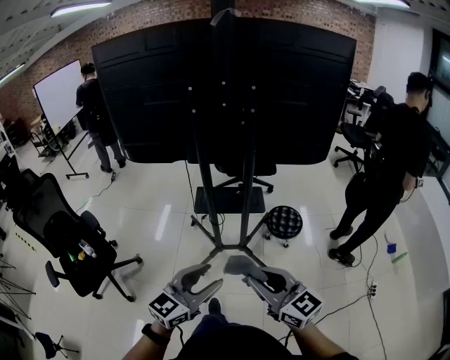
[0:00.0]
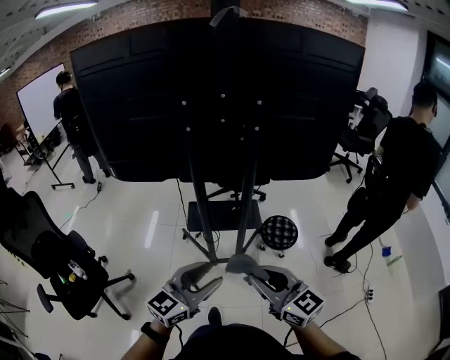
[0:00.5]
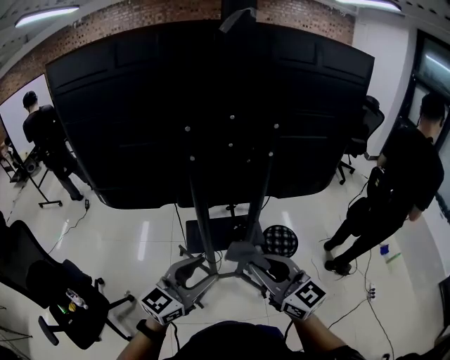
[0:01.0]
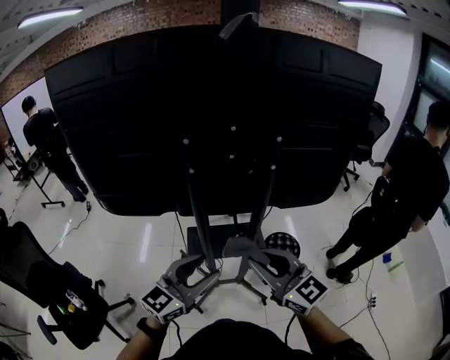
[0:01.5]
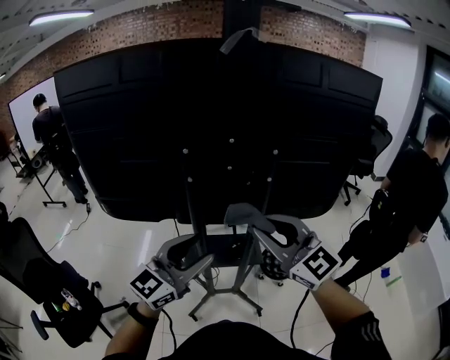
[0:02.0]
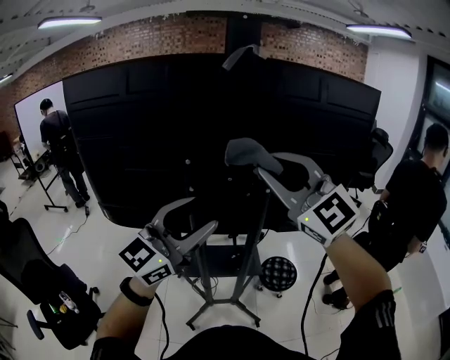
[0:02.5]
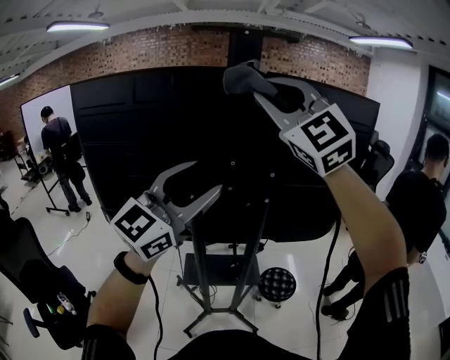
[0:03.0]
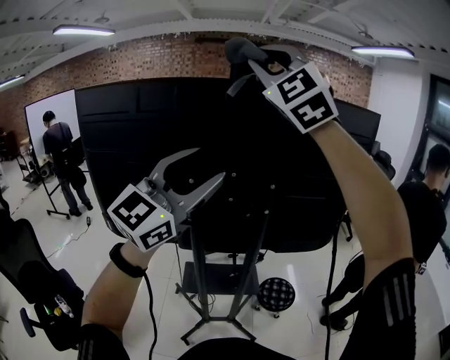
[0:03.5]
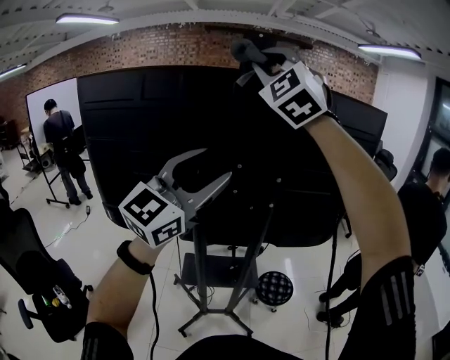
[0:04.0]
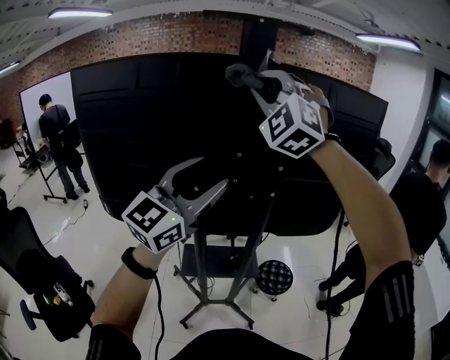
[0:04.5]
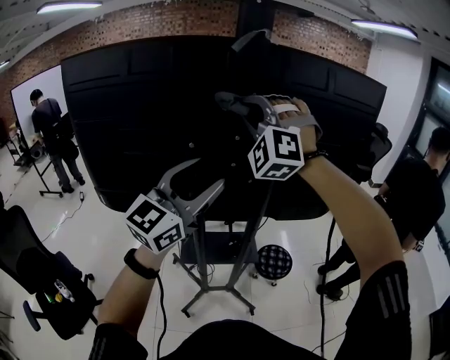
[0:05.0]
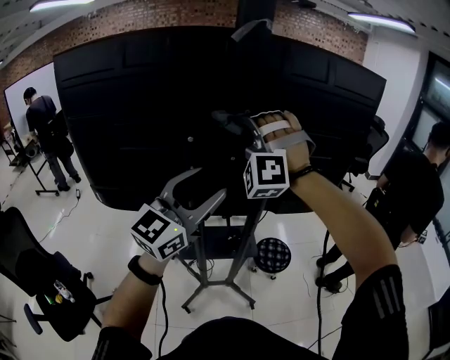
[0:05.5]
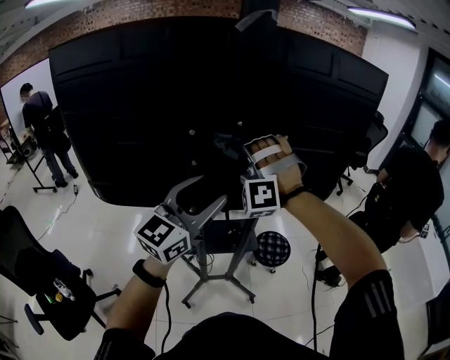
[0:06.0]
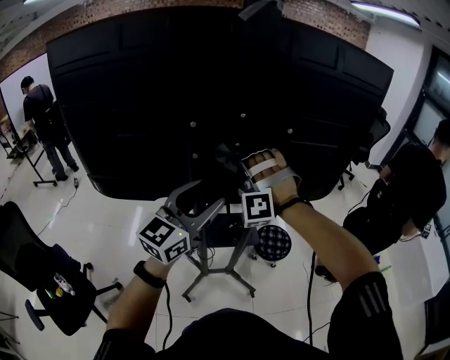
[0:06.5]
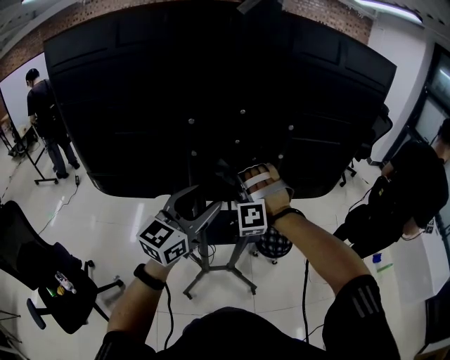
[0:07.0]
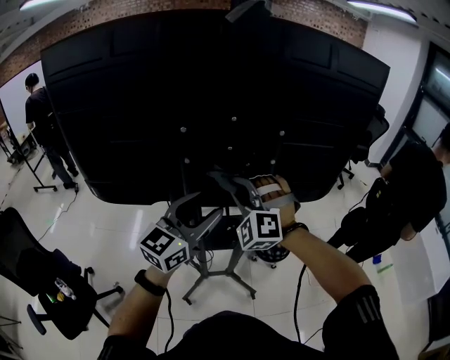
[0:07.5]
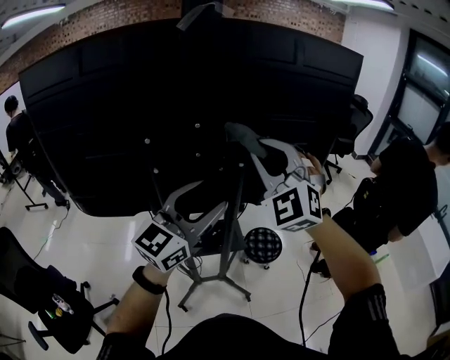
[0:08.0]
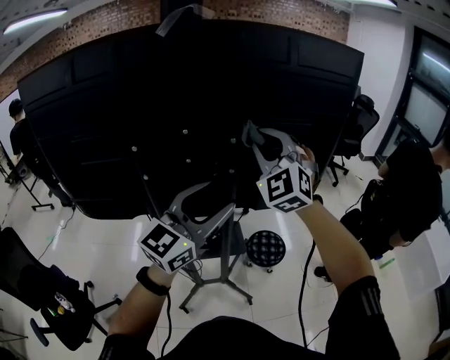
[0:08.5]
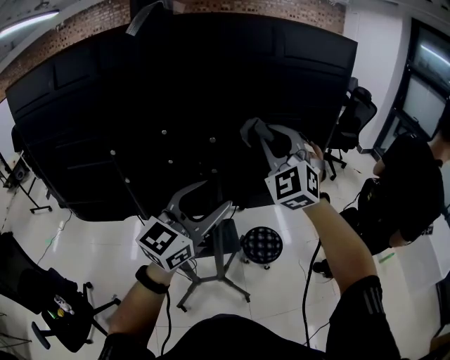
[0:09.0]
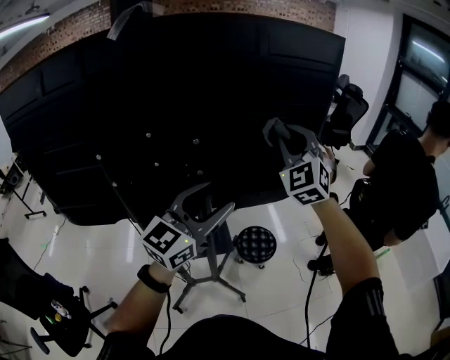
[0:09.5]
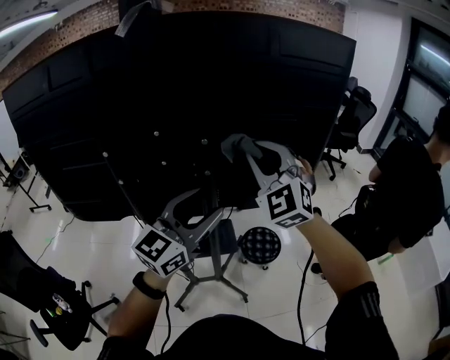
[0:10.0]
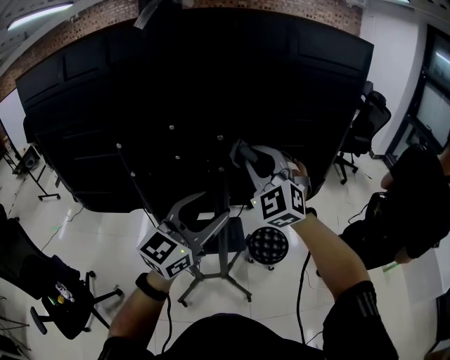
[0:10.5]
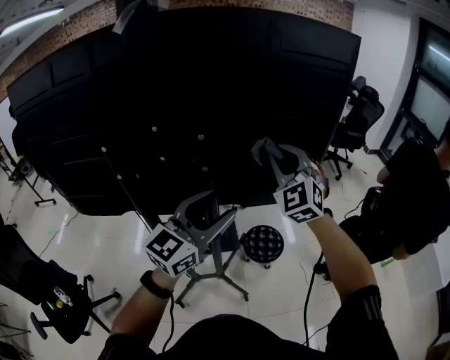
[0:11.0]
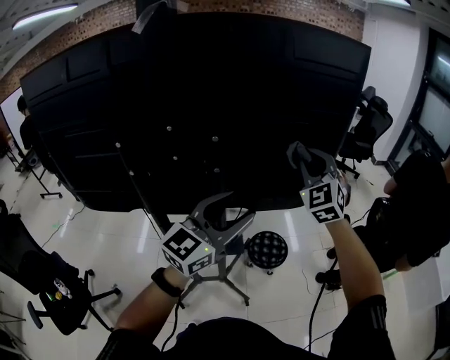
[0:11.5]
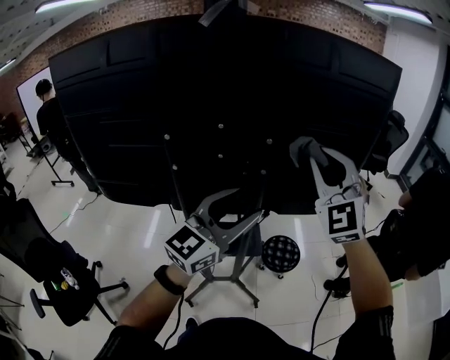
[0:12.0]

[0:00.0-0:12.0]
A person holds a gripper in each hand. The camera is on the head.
0:00.0 to 0:02.0: The left gripper shifts by about 35 cm.
0:02.0 to 0:04.0: The left gripper travels upward by approximately 25 cm.
0:04.0 to 0:06.0: The left gripper shifts approximately 15 cm downward.
0:06.0 to 0:08.0: The left gripper moves roughly 5 cm downward and comes back.
0:08.0 to 0:10.0: The left gripper ends up some 10 cm from where it was.

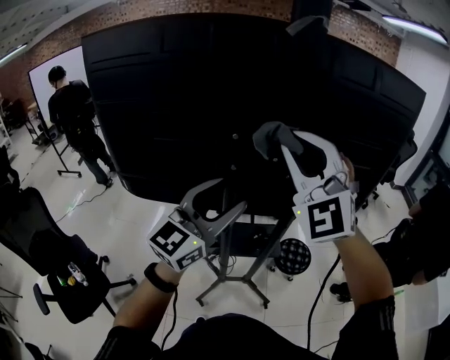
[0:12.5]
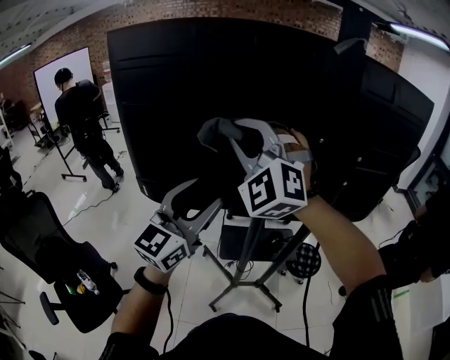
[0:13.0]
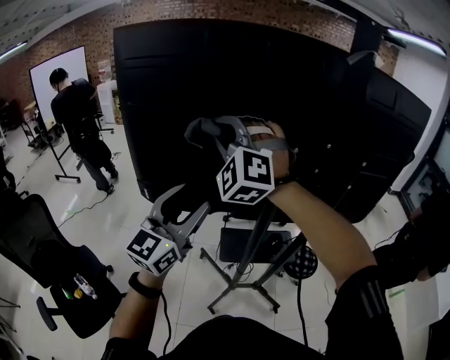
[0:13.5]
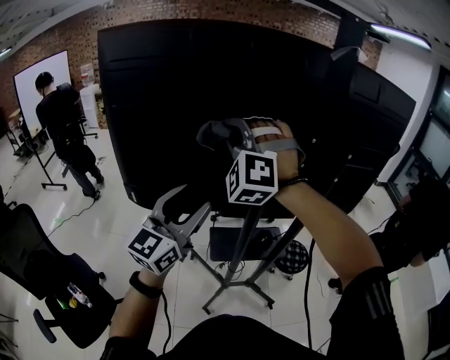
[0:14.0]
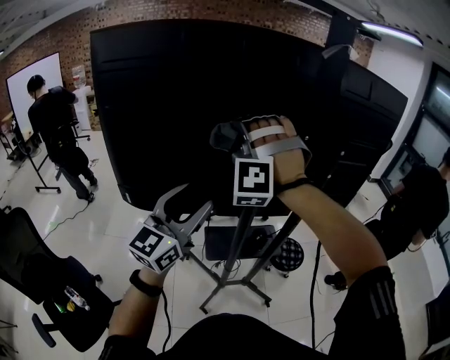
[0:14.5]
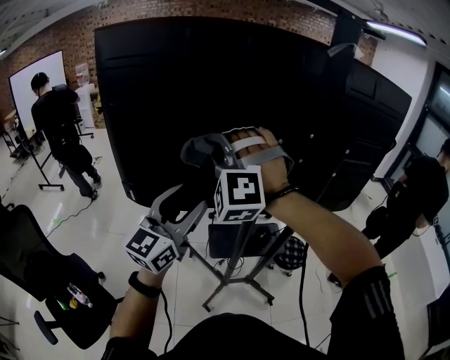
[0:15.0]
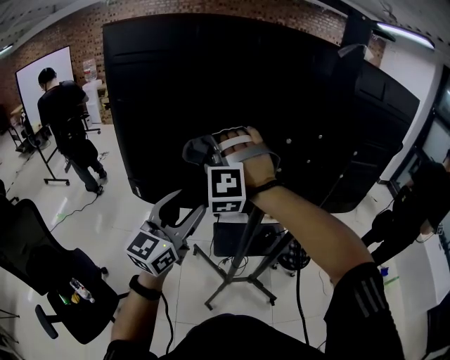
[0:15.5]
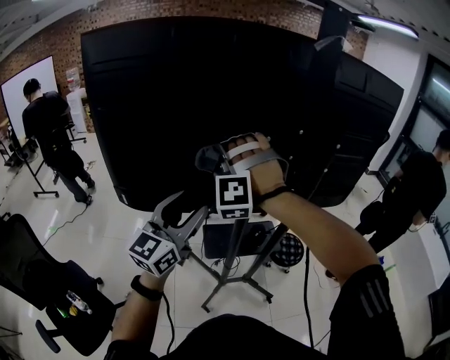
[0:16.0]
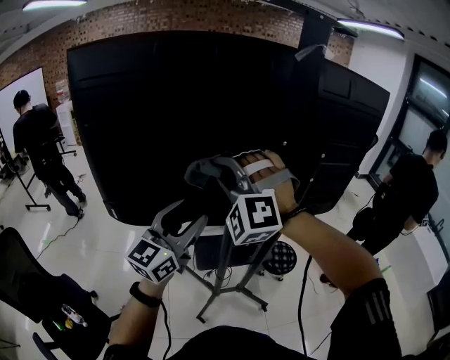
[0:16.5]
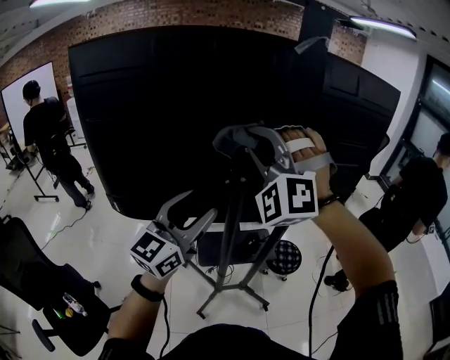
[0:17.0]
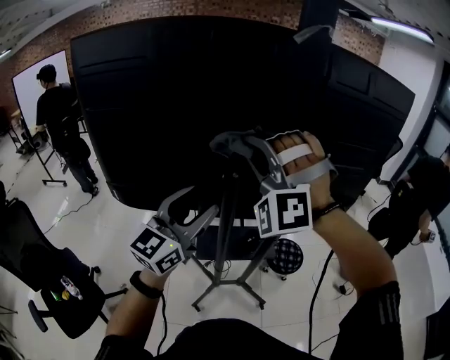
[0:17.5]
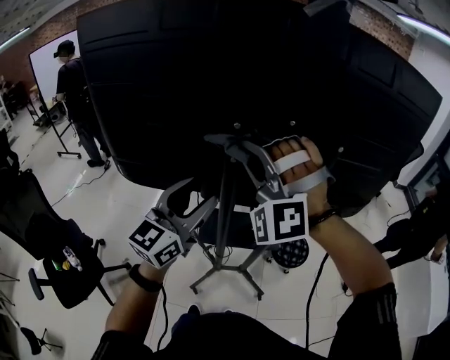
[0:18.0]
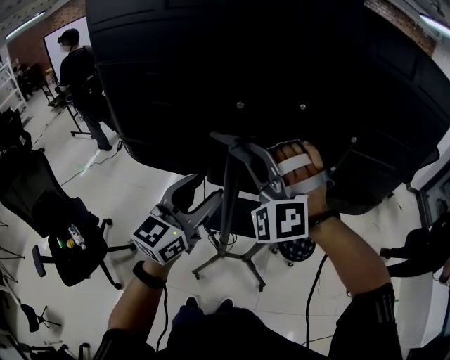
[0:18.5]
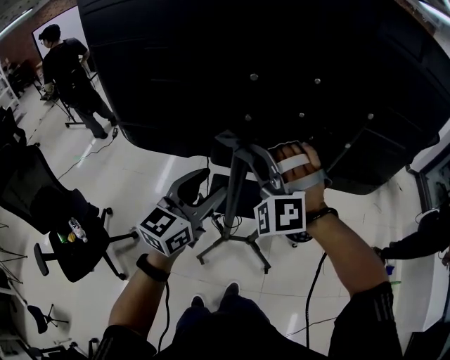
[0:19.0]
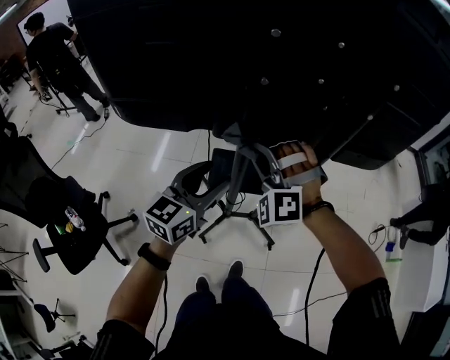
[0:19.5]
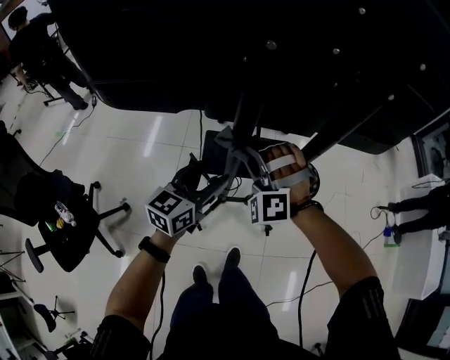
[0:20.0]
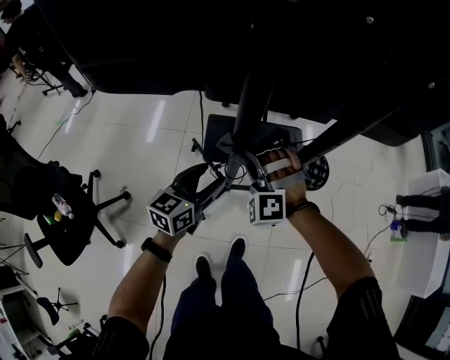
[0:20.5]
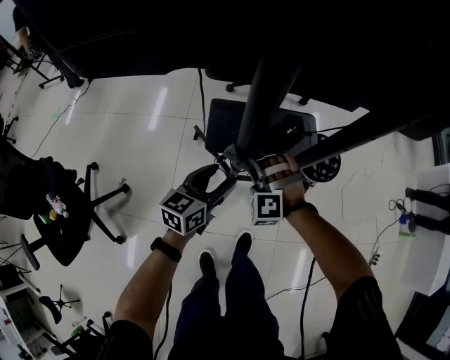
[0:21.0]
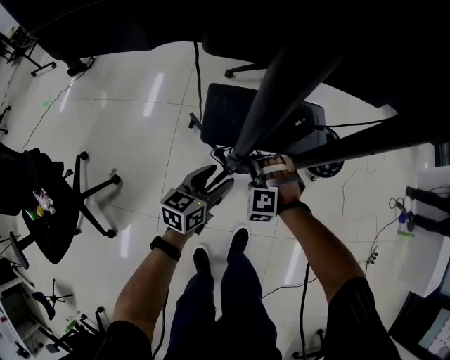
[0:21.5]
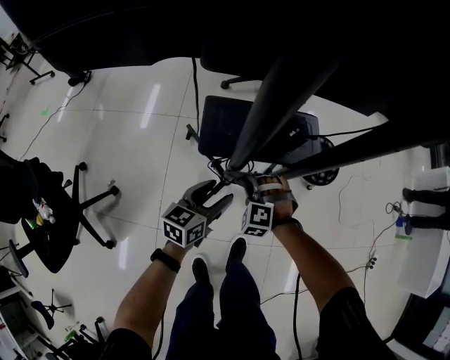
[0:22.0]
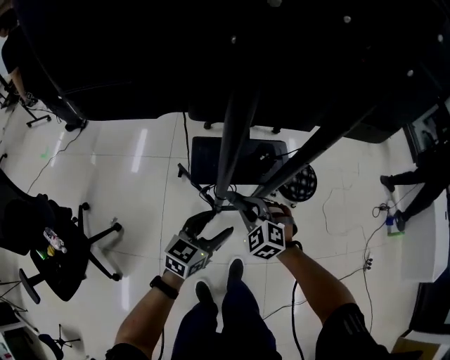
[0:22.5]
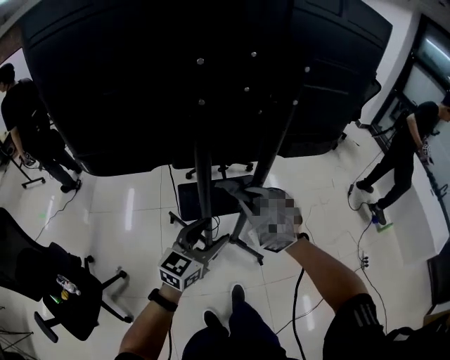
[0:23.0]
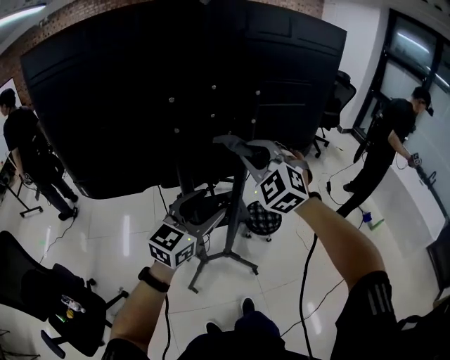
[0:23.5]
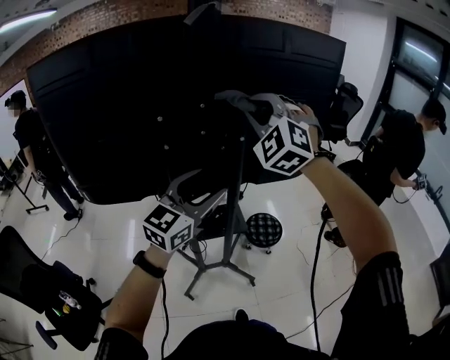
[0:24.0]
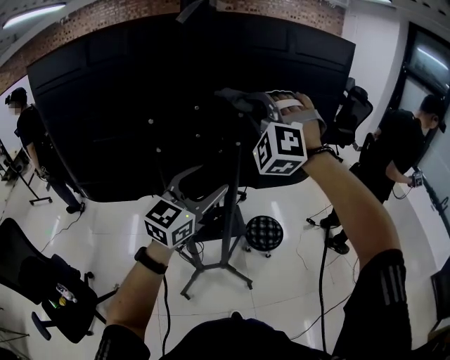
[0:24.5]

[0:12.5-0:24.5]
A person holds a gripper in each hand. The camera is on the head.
0:12.5 to 0:14.5: The left gripper ends up roughly 20 cm from where it was.
0:16.5 to 0:18.5: The left gripper moves roughly 10 cm.
0:18.5 to 0:20.5: The left gripper is displaced downward by roughly 35 cm, and changes its angle by approximately 30 degrees.
0:20.5 to 0:22.5: The left gripper travels downward and back again, about 20 cm each way.
0:22.5 to 0:24.5: The left gripper heads upward, covering some 50 cm, and changes its angle by some 30 degrees.

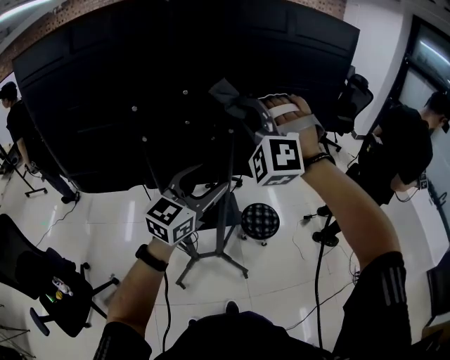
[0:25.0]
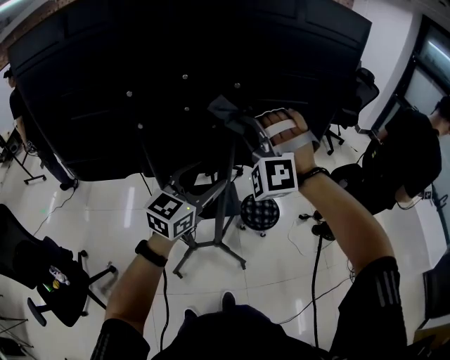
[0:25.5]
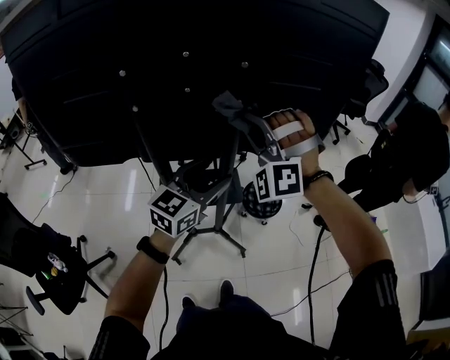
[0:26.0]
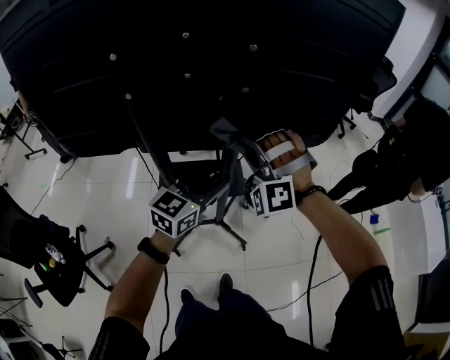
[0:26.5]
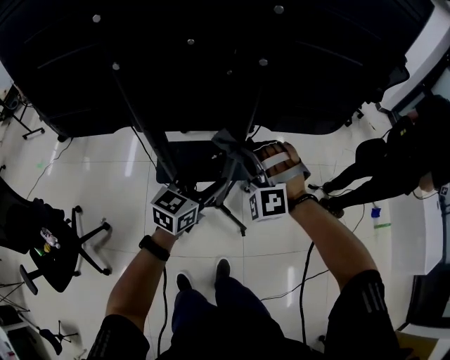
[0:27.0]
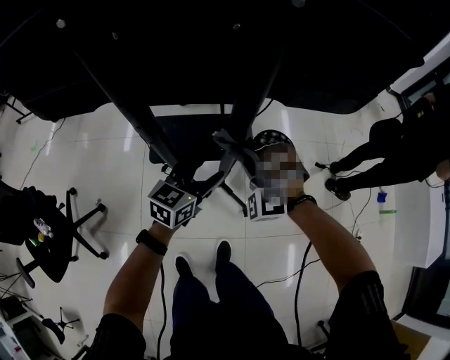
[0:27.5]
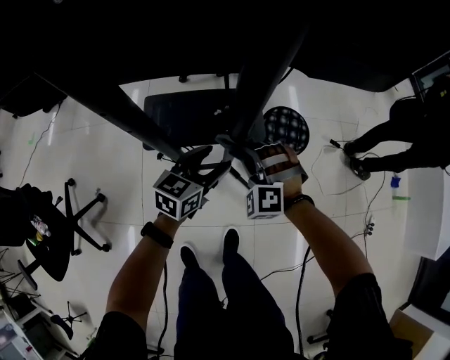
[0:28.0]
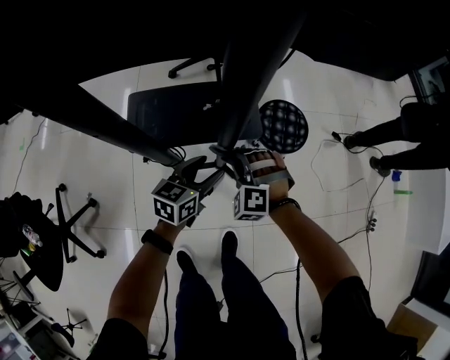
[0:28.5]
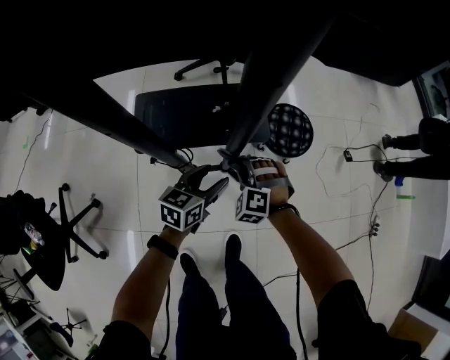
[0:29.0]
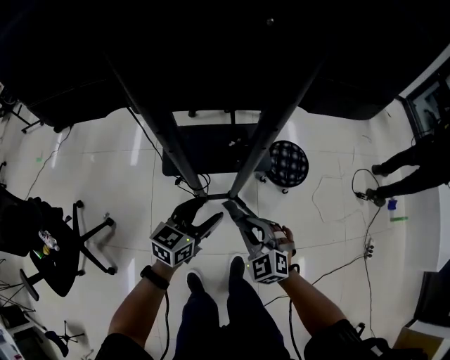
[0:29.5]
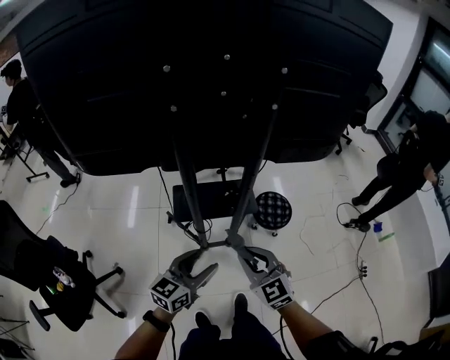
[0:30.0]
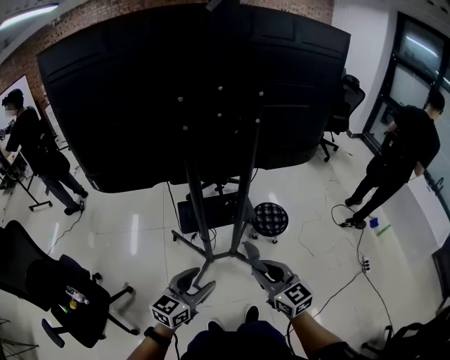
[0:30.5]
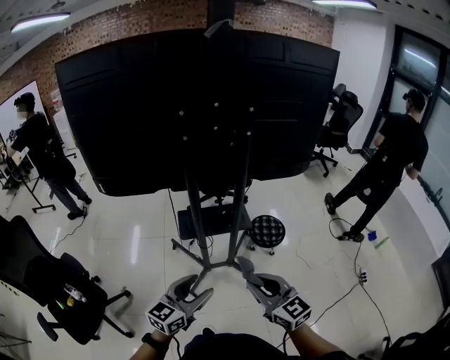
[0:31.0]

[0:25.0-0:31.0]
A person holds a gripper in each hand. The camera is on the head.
0:25.0 to 0:27.0: The left gripper travels downward by about 25 cm, and swivels approximately 20 degrees.
0:27.0 to 0:29.0: The left gripper heads downward, covering some 35 cm, and rotates about 20 degrees.
0:29.0 to 0:31.0: The left gripper heads upward, covering roughly 40 cm, and swivels approximately 30 degrees.
